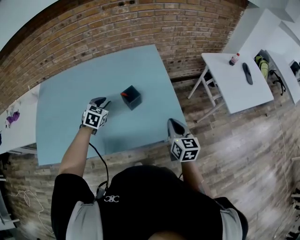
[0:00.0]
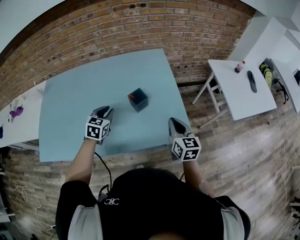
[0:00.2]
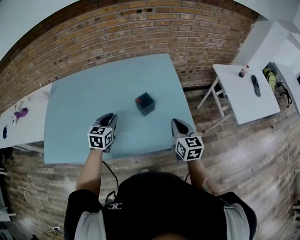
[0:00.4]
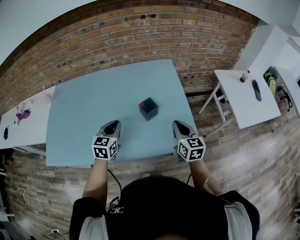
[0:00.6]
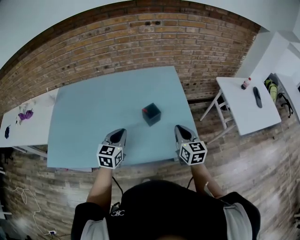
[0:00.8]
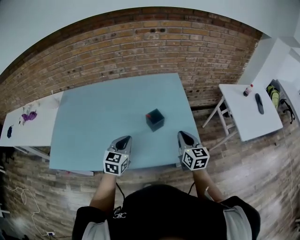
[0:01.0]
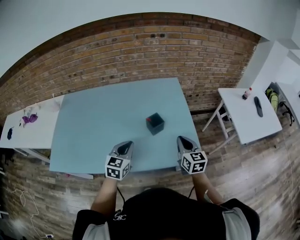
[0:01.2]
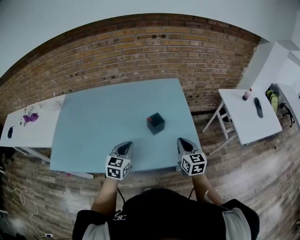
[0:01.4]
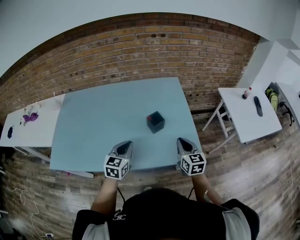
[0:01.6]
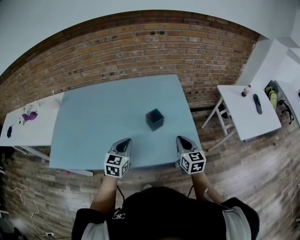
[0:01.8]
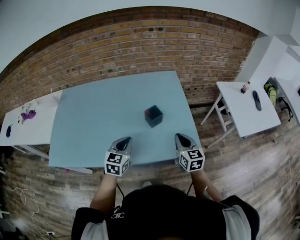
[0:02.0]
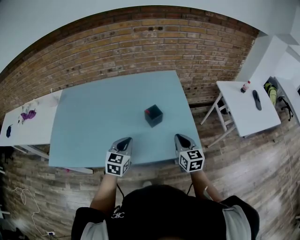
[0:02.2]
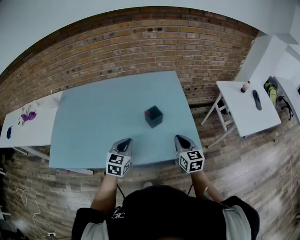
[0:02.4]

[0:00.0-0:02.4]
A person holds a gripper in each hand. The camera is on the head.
0:00.0 to 0:01.2: The right gripper moves to the left, roughly 5 cm; the left gripper heads backward, covering about 15 cm, turns by approximately 20 degrees, and closes.
0:01.2 to 0:02.4: The grippers stay close to where they were, moving slightly.

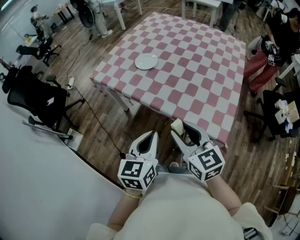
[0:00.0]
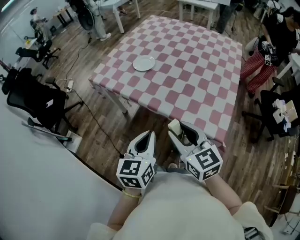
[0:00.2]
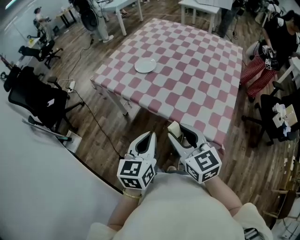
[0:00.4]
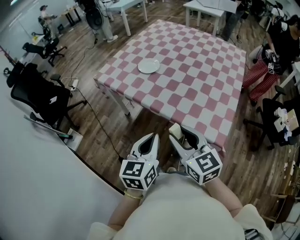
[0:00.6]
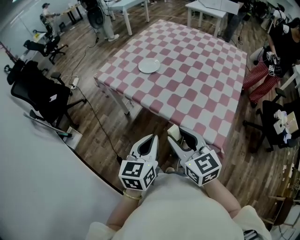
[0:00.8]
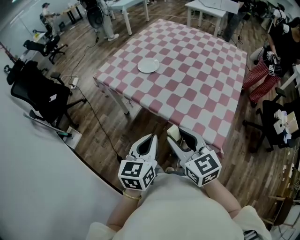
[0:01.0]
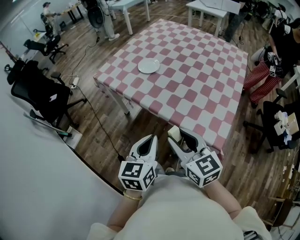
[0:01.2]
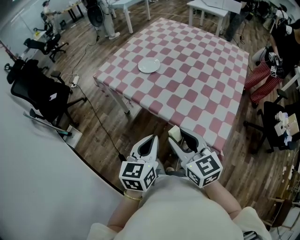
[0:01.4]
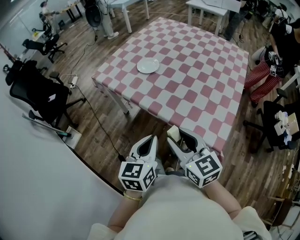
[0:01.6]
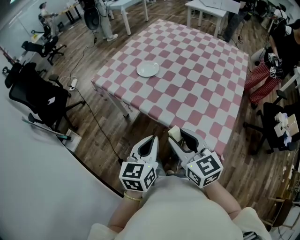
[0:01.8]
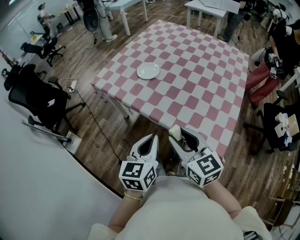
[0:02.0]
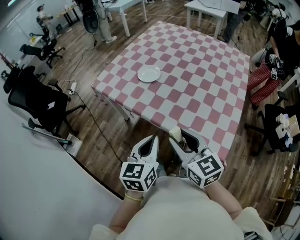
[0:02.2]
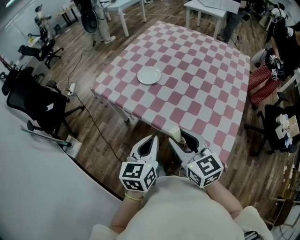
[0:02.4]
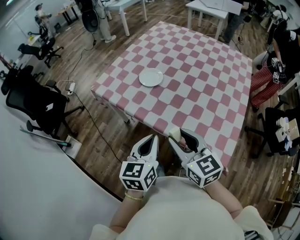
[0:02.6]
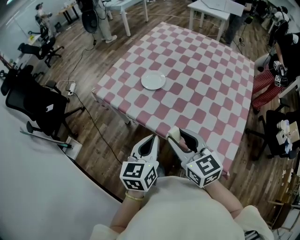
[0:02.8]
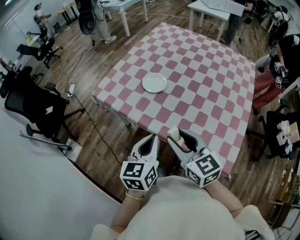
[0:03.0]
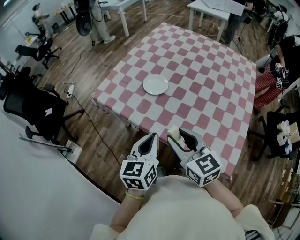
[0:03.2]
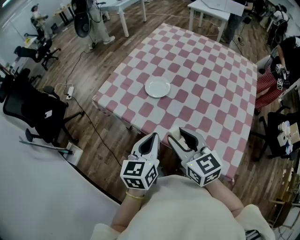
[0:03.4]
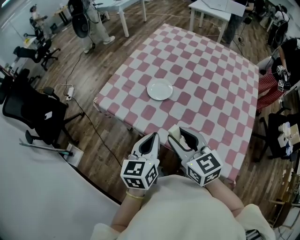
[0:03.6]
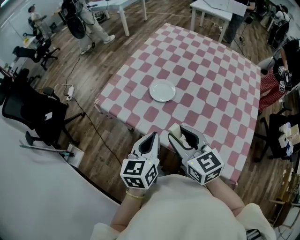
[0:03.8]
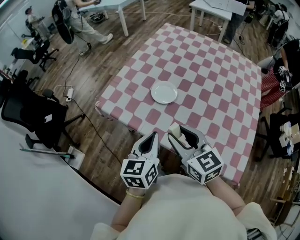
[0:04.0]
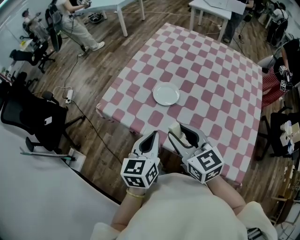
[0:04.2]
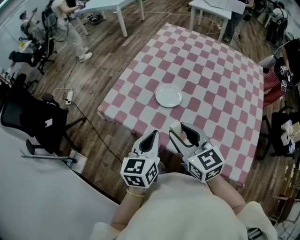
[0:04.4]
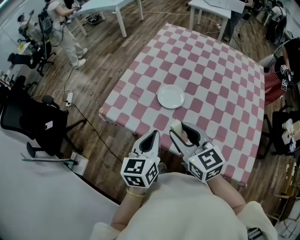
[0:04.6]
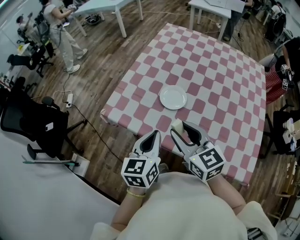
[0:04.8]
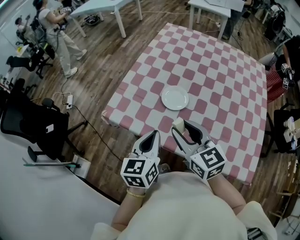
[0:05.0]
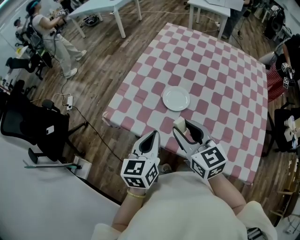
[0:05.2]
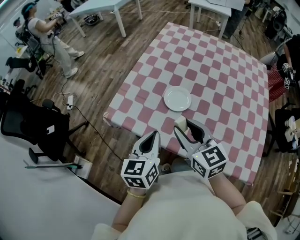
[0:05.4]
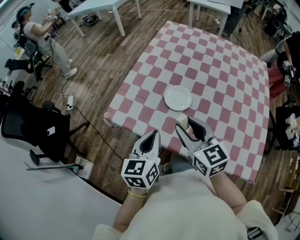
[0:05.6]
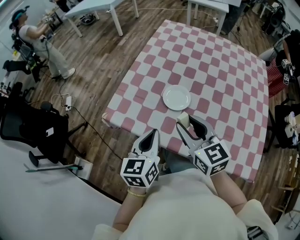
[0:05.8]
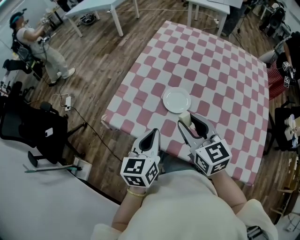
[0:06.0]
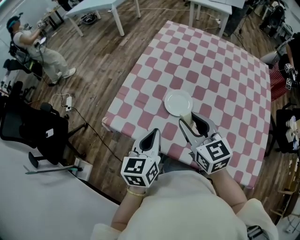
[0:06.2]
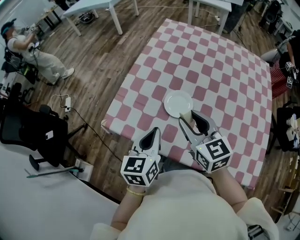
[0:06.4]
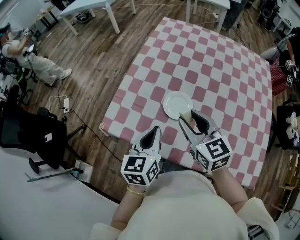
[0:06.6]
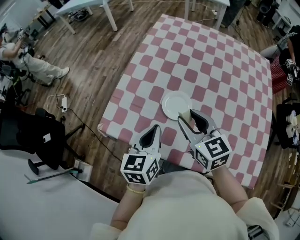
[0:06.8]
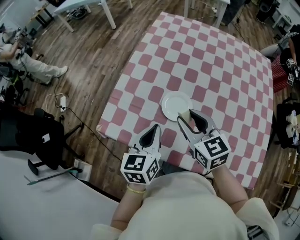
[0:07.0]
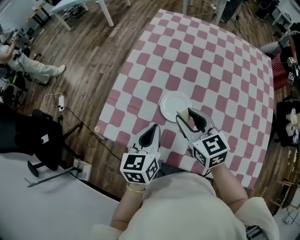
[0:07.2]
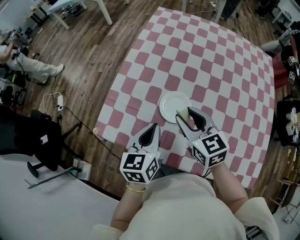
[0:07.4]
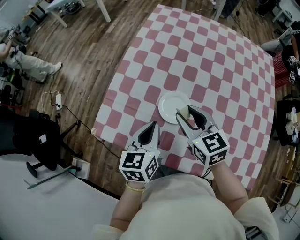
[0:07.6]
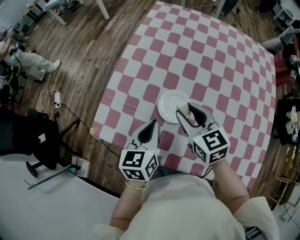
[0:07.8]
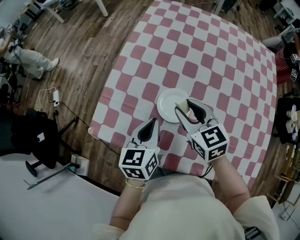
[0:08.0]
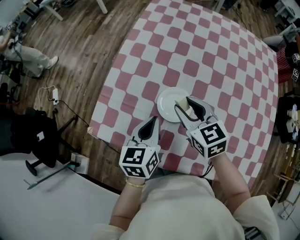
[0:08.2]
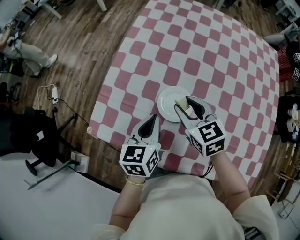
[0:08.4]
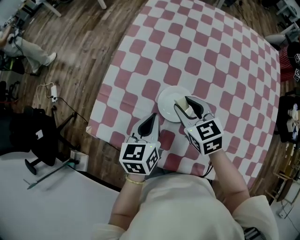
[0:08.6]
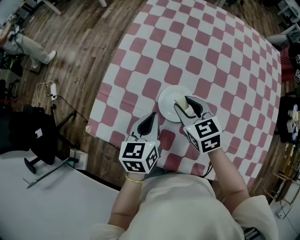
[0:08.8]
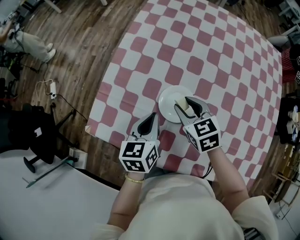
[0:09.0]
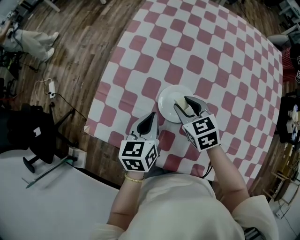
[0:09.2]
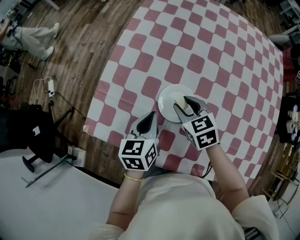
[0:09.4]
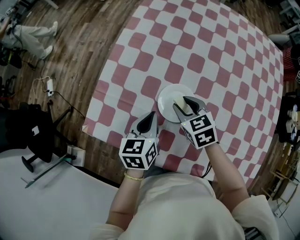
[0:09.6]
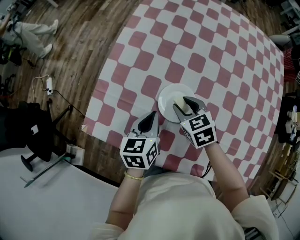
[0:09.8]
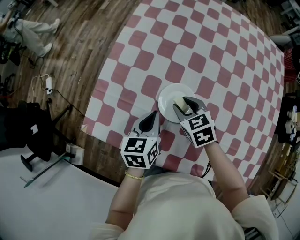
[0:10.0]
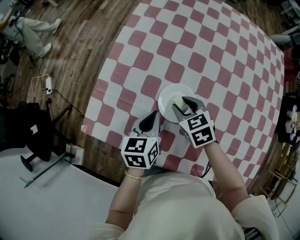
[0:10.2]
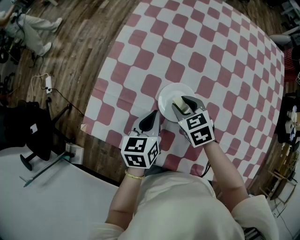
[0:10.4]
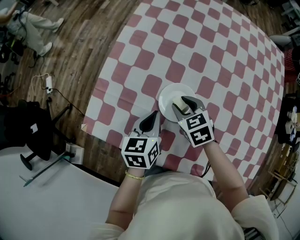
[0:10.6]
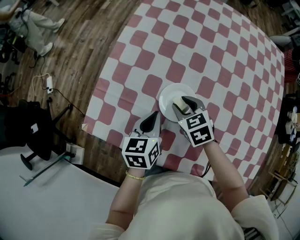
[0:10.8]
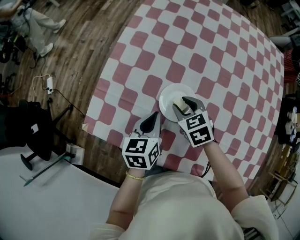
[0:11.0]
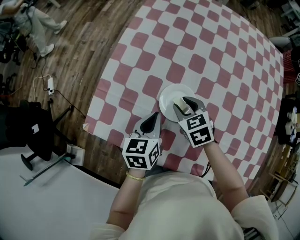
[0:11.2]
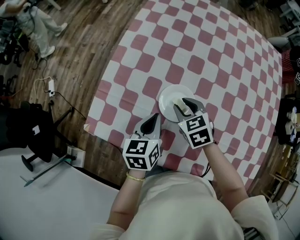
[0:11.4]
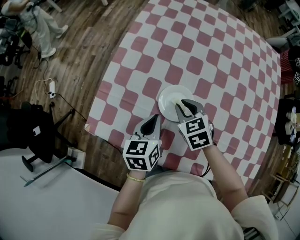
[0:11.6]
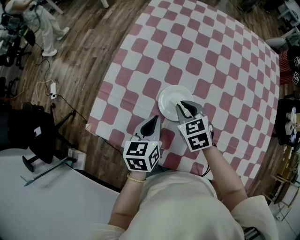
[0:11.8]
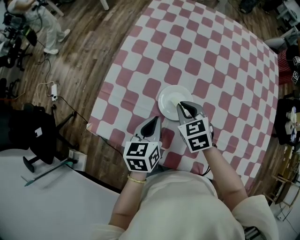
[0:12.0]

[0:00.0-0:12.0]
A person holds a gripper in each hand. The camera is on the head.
0:00.0 to 0:01.6: The grippers make only small movements.
0:01.6 to 0:03.0: Both grippers move forward, about 15 cm.
0:03.0 to 0:04.4: Both grippers move forward and to the left, roughly 15 cm.
0:04.4 to 0:06.0: The two grippers go about 10 cm forward.
0:06.0 to 0:07.6: Both grippers move forward and downward, approximately 15 cm.
0:07.6 to 0:09.0: The right gripper shifts roughly 10 cm downward and forward, while the left gripper shifts about 5 cm downward.
0:09.0 to 0:10.4: The right gripper is displaced downward by roughly 5 cm.
0:10.4 to 0:12.0: The left gripper shifts by approximately 5 cm; the right gripper goes some 5 cm upward, and closes its fingers.

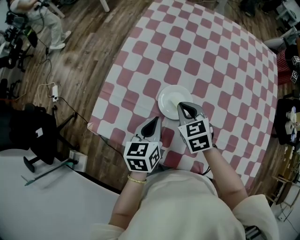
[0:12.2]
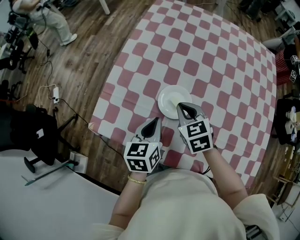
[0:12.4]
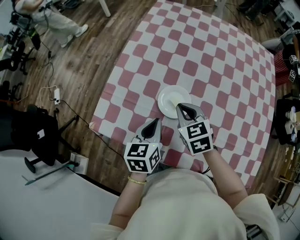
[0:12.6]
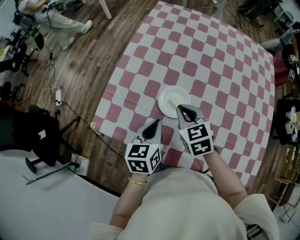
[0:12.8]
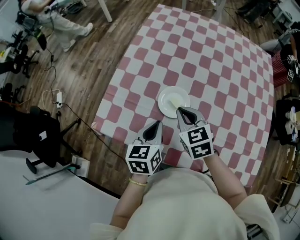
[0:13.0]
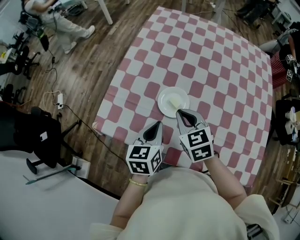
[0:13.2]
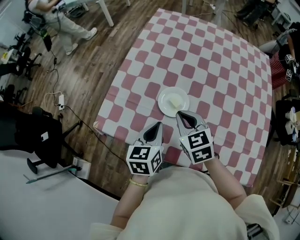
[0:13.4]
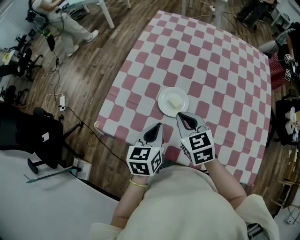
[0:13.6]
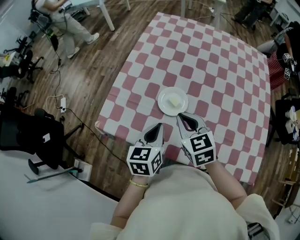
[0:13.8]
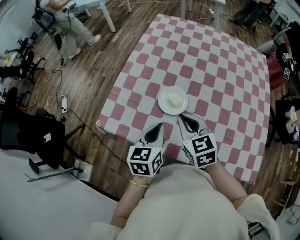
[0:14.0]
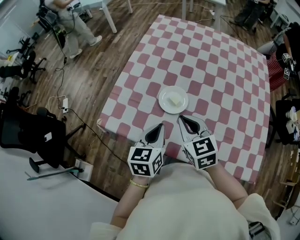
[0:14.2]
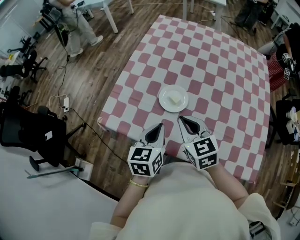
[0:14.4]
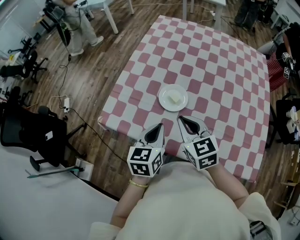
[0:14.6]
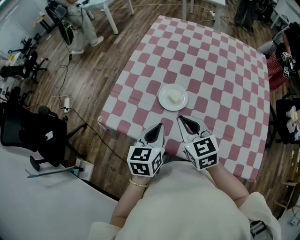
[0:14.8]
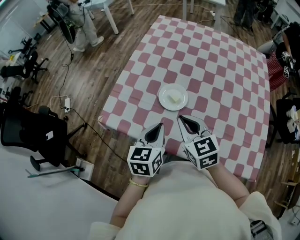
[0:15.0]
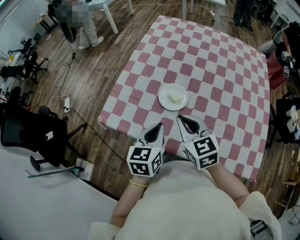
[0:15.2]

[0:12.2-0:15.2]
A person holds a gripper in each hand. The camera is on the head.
0:12.2 to 0:13.8: The grippers both shift backward and upward by about 10 cm.
0:13.8 to 0:15.2: The right gripper shifts by about 5 cm.

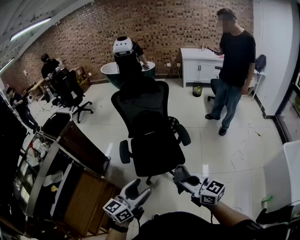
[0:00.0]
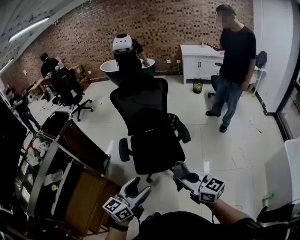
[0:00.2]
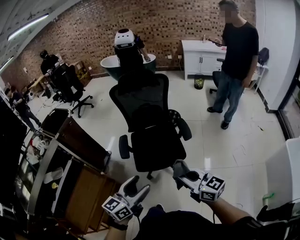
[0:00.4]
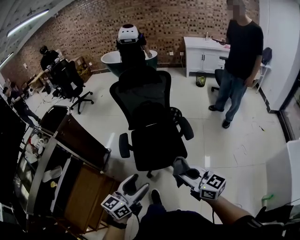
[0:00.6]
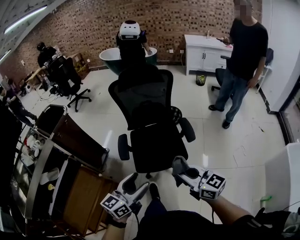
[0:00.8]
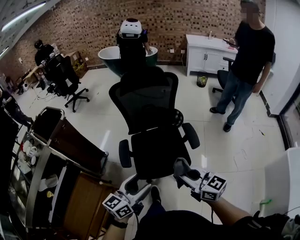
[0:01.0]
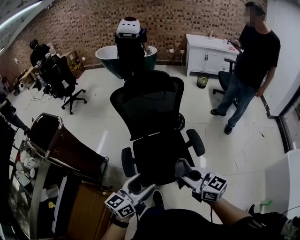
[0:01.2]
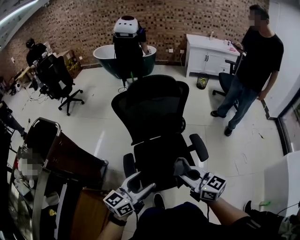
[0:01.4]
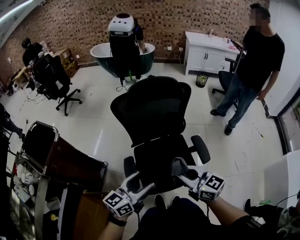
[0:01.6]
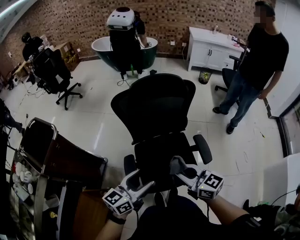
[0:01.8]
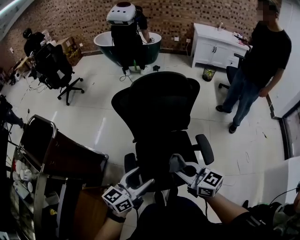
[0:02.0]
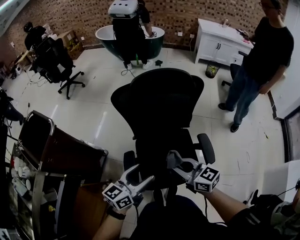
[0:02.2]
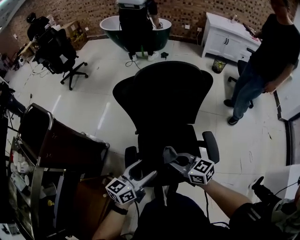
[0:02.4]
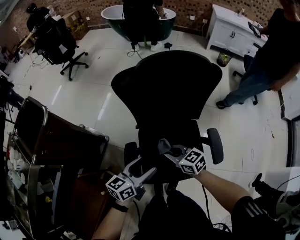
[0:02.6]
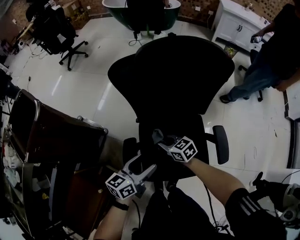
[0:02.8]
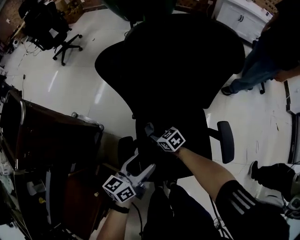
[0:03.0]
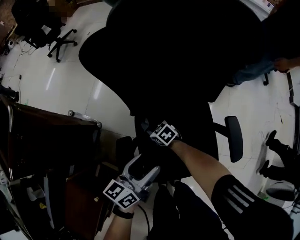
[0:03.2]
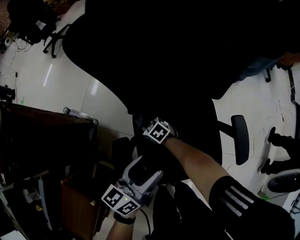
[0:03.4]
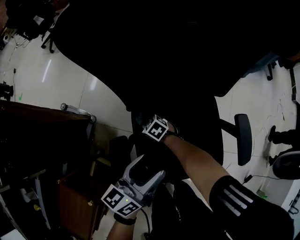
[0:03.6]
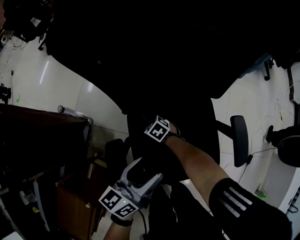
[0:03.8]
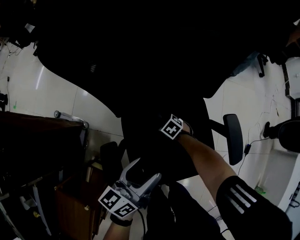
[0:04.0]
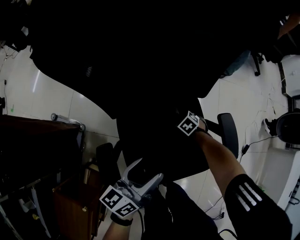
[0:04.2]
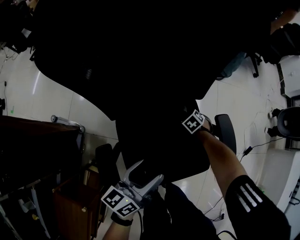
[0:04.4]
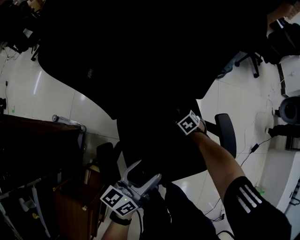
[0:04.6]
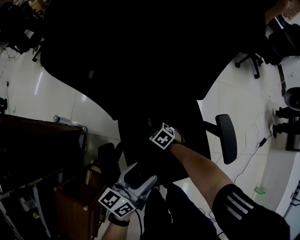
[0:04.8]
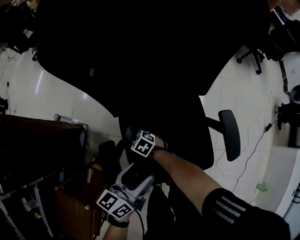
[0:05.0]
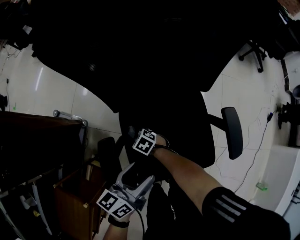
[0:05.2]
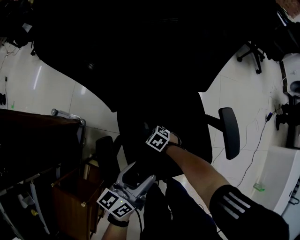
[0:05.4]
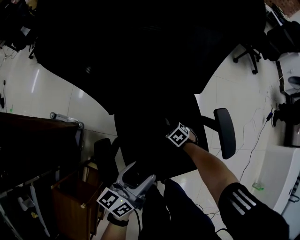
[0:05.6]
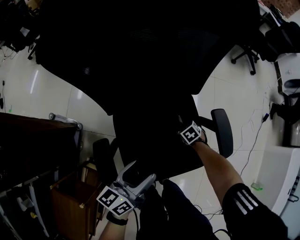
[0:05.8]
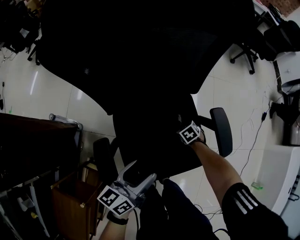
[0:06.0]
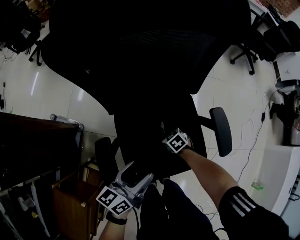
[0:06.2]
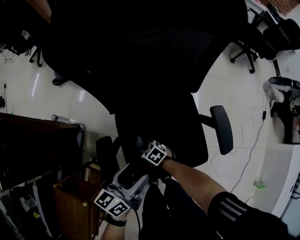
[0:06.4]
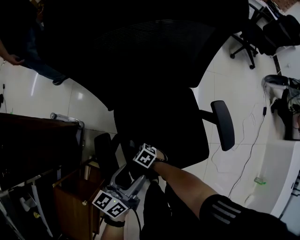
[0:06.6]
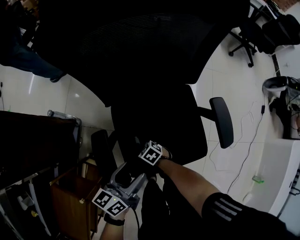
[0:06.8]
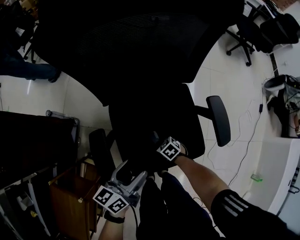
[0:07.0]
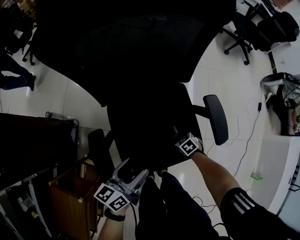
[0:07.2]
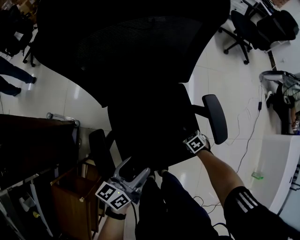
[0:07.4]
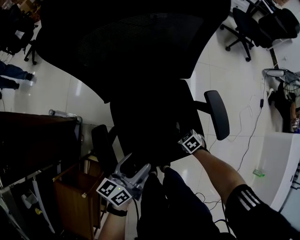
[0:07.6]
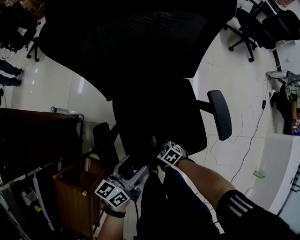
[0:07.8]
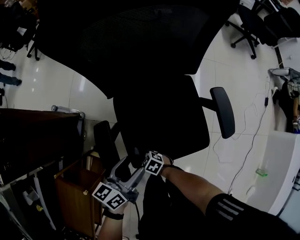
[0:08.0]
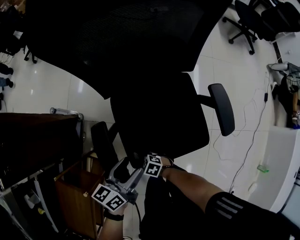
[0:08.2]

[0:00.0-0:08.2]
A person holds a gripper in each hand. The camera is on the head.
0:00.0 to 0:01.6: Both grippers move forward, some 35 cm.
0:01.6 to 0:03.2: The left gripper goes some 30 cm downward and forward, and turns by some 20 degrees. The right gripper travels downward and forward by some 60 cm, and tips its fingers downward by about 40 degrees.
0:03.2 to 0:05.0: The left gripper changes place by approximately 5 cm; the right gripper shifts about 5 cm downward.
